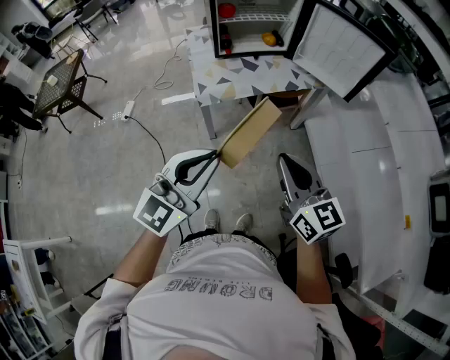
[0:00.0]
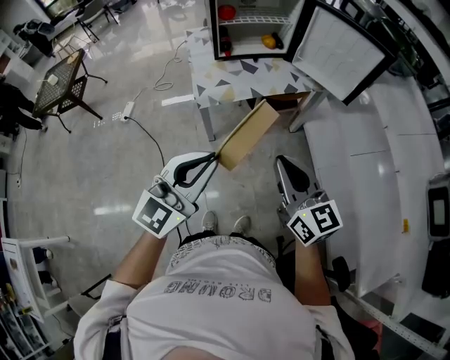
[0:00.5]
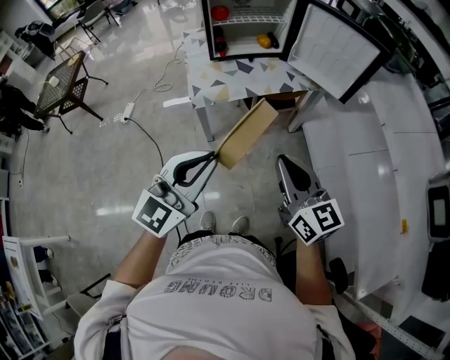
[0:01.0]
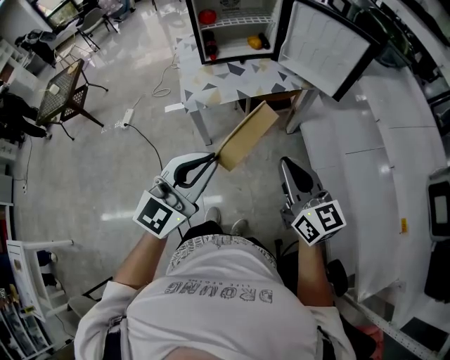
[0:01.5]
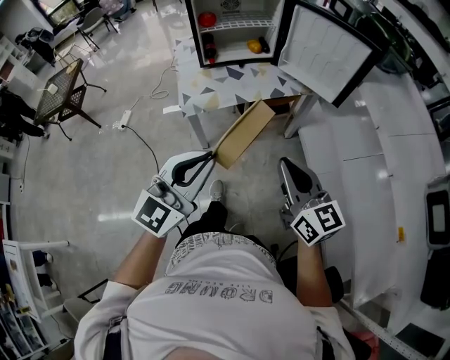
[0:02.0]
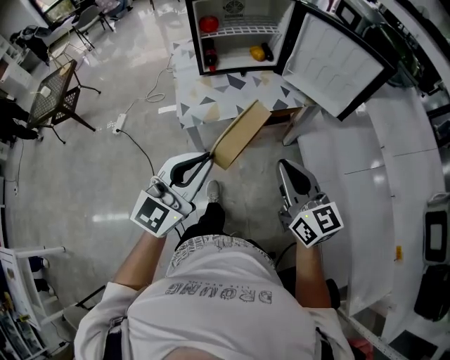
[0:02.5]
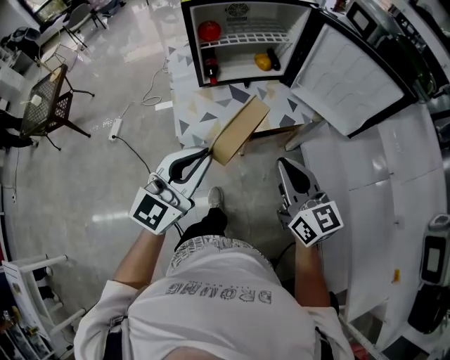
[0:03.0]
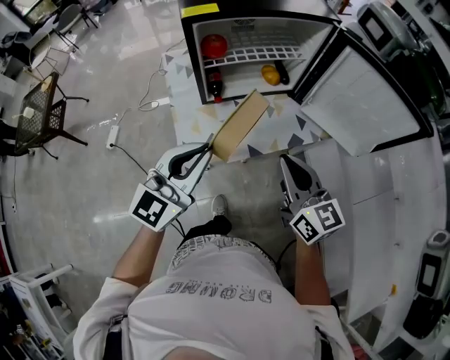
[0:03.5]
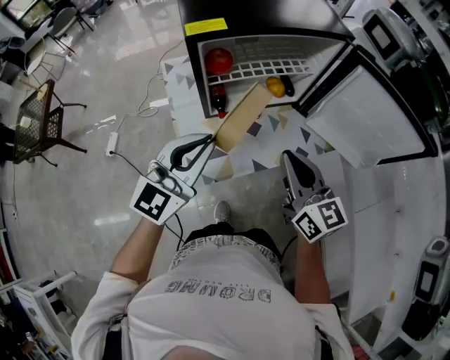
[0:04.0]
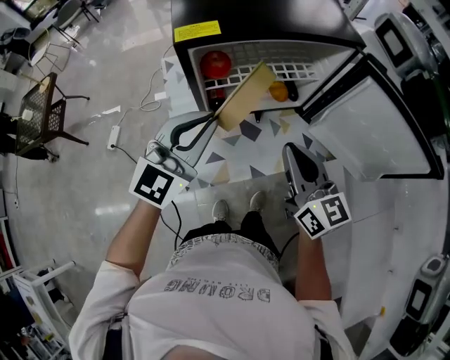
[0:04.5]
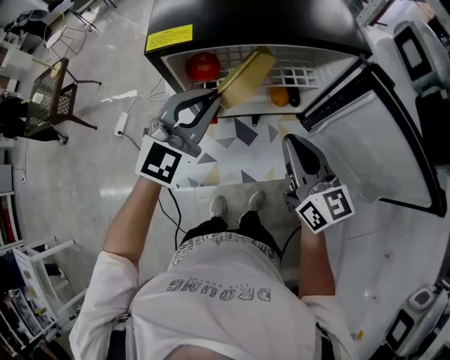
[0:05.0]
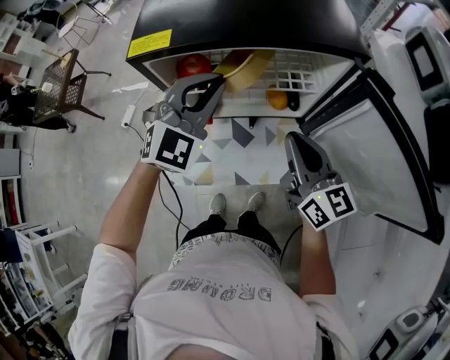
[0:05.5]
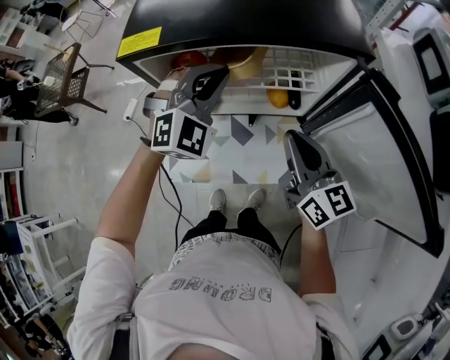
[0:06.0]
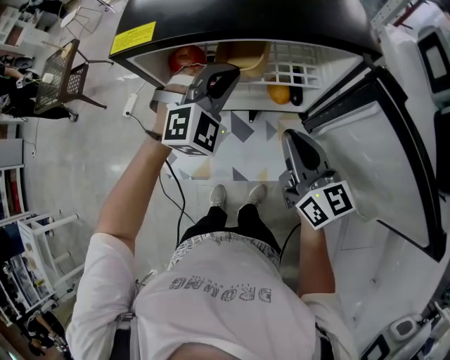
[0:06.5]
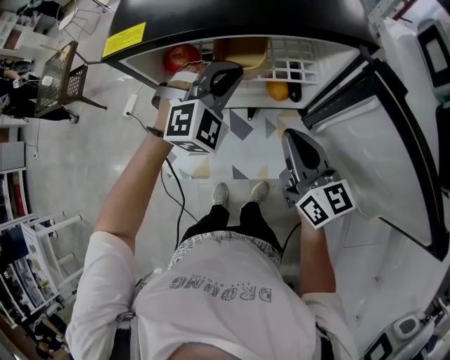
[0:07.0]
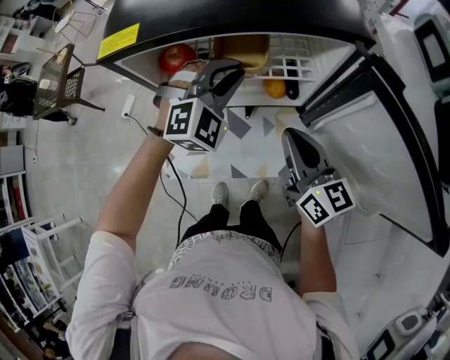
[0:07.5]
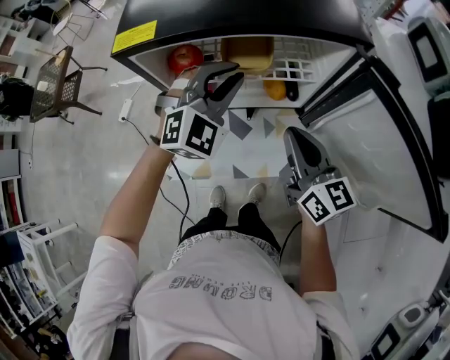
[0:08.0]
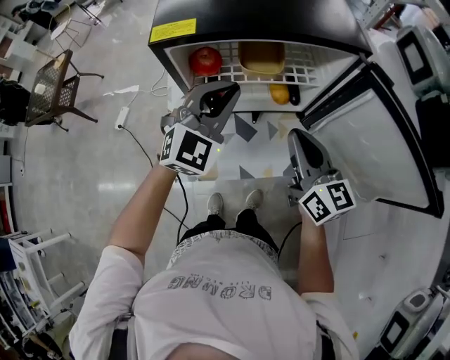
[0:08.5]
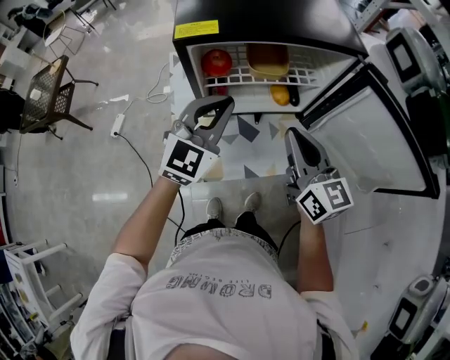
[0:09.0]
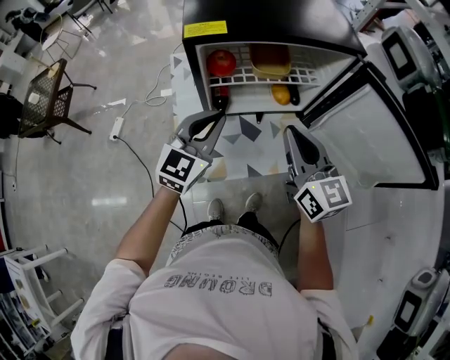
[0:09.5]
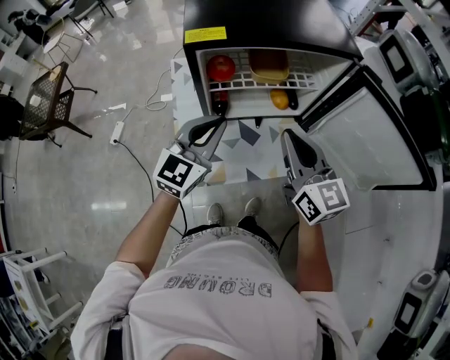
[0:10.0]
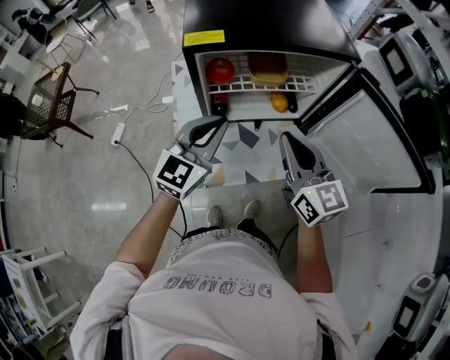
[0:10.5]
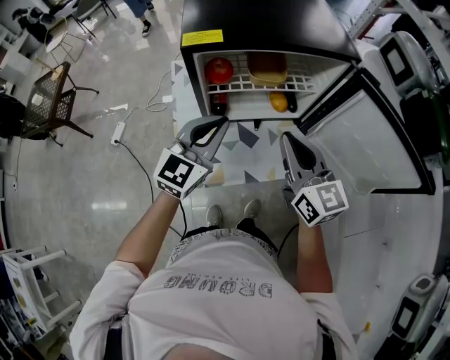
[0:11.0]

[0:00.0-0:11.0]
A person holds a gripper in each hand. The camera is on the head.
0:00.0 to 0:02.0: Both grippers move to the right, about 10 cm.
0:02.0 to 0:03.5: Both grippers move forward, roughly 30 cm.
0:03.5 to 0:05.5: The two grippers go some 25 cm forward. The left gripper changes its angle by approximately 40 degrees.
0:05.5 to 0:07.5: The left gripper goes approximately 10 cm downward and to the right, and swivels approximately 20 degrees.
0:07.5 to 0:09.0: The left gripper travels backward, to the left and upward by roughly 15 cm, and turns by about 40 degrees; the right gripper travels upward, to the left and backward by approximately 10 cm.
0:09.0 to 0:11.0: The grippers stay close to where they were, moving slightly.

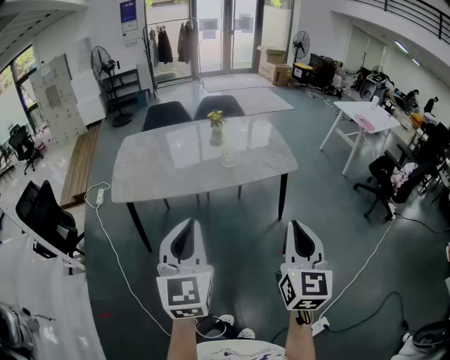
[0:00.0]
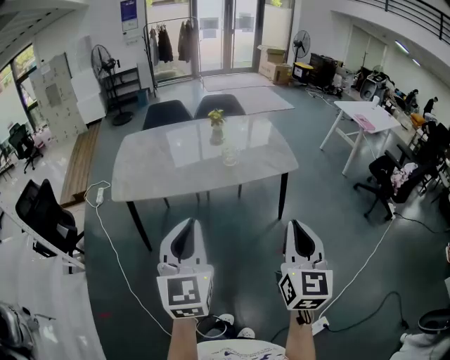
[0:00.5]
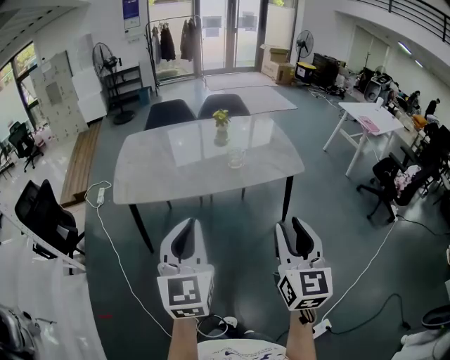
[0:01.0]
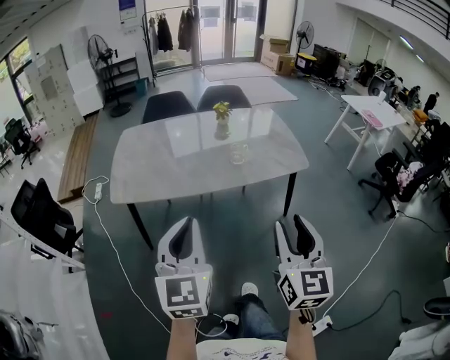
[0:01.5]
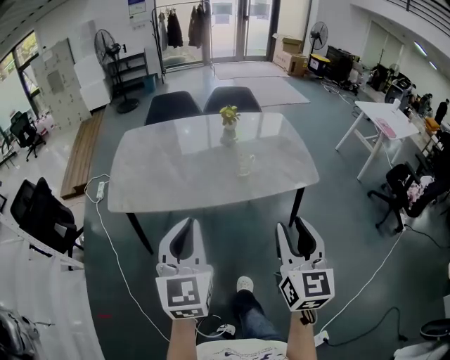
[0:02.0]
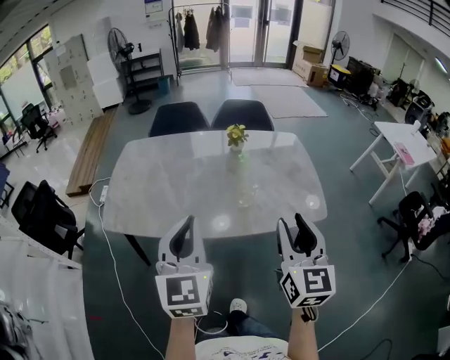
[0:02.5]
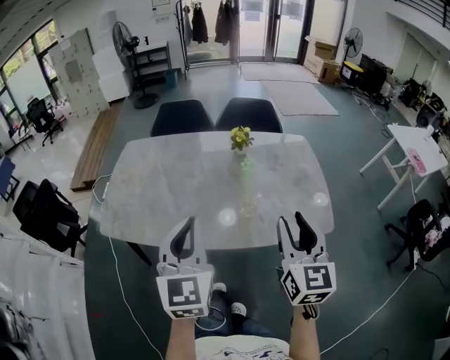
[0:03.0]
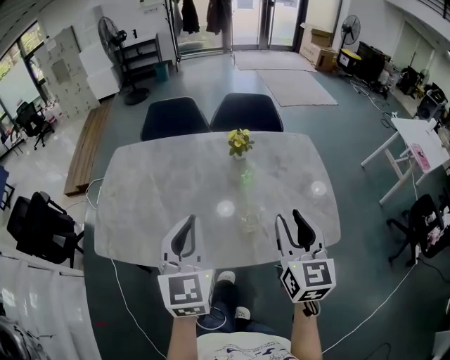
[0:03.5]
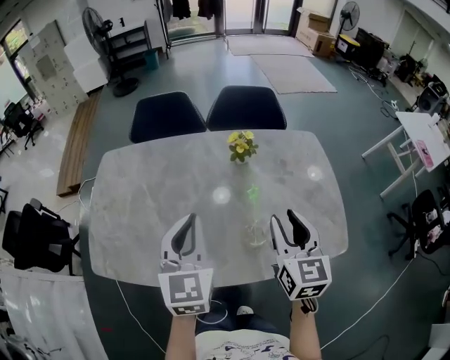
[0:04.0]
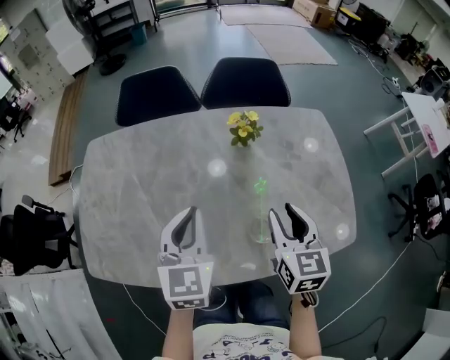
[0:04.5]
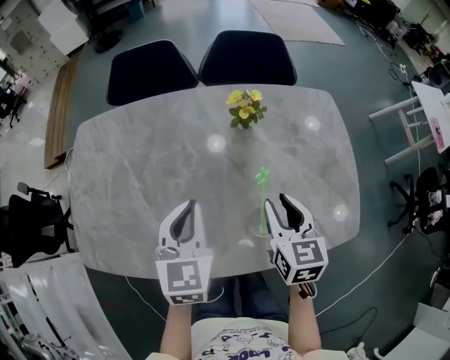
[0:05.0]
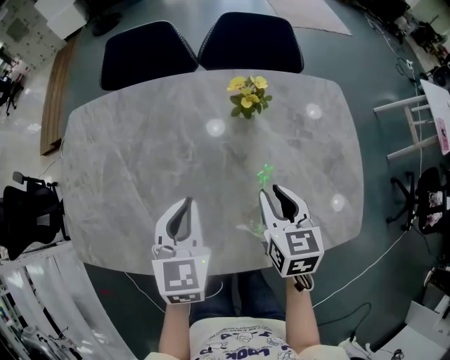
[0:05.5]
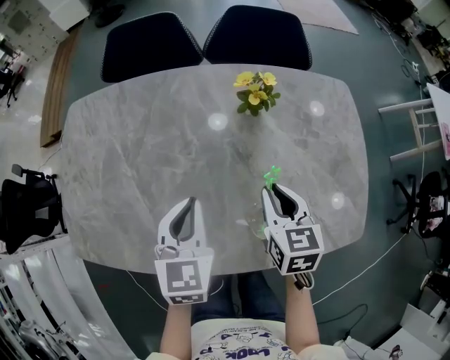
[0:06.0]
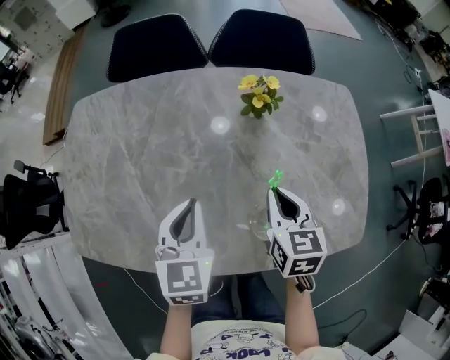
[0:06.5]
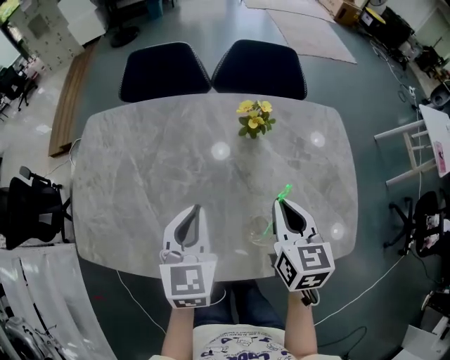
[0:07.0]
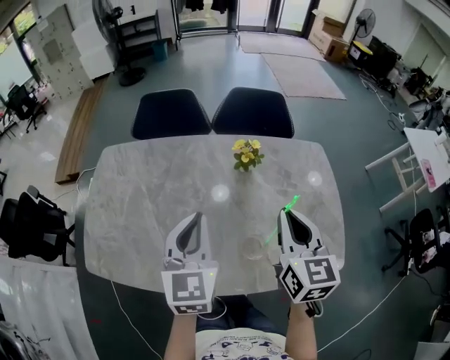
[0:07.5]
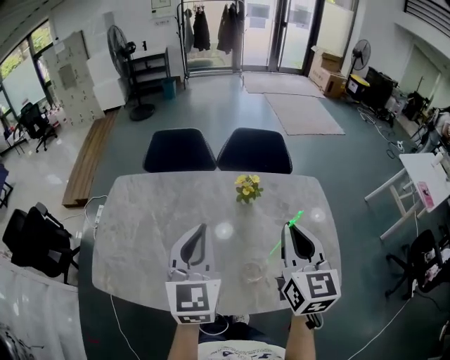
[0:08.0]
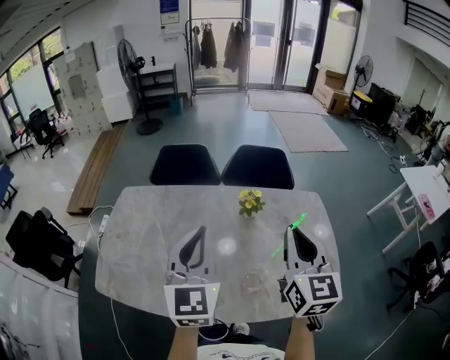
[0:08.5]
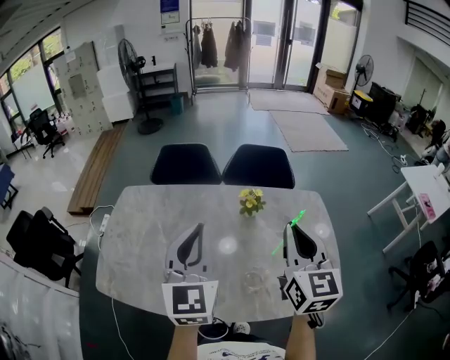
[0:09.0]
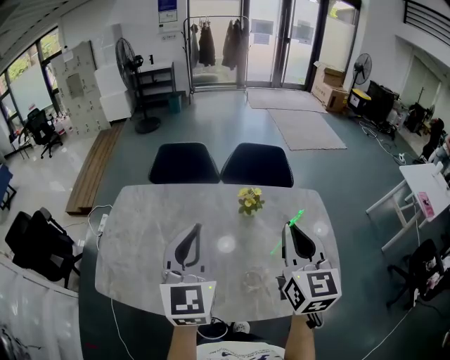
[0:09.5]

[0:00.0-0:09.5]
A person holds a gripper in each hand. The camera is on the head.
0:00.0 to 0:02.0: The grippers both shift forward by some 15 cm. The right gripper opens.
0:02.0 to 0:04.0: The pair of grippers is taken forward, roughly 40 cm.
0:04.0 to 0:05.5: Both grippers move downward and forward, about 15 cm. The right gripper turns by some 20 degrees.
0:05.5 to 0:07.5: The two grippers go roughly 15 cm upward. The right gripper swivels some 20 degrees, and closes.
0:07.5 to 0:09.5: The two grippers go roughly 10 cm upward.

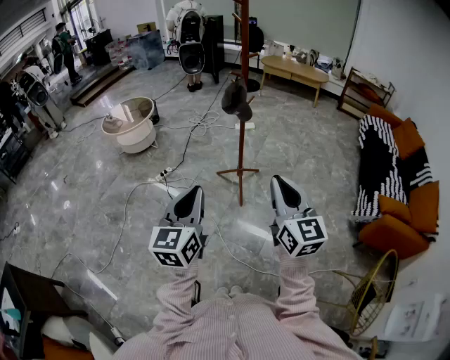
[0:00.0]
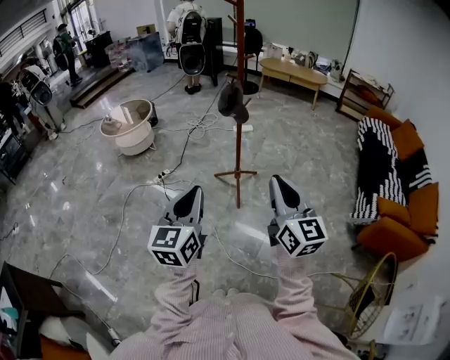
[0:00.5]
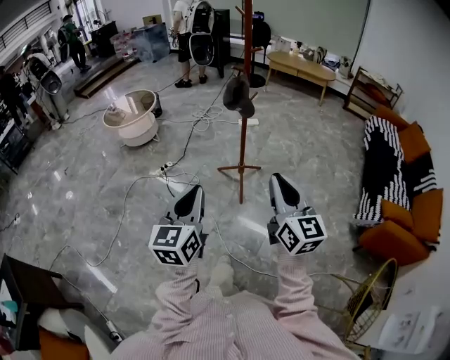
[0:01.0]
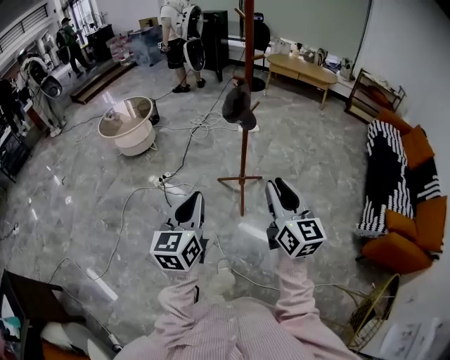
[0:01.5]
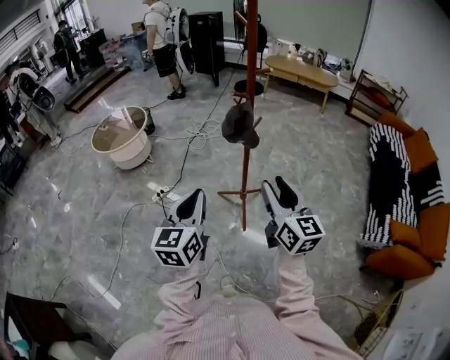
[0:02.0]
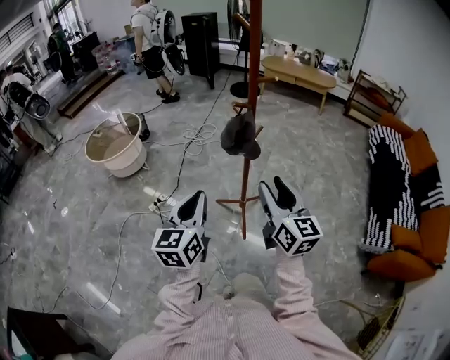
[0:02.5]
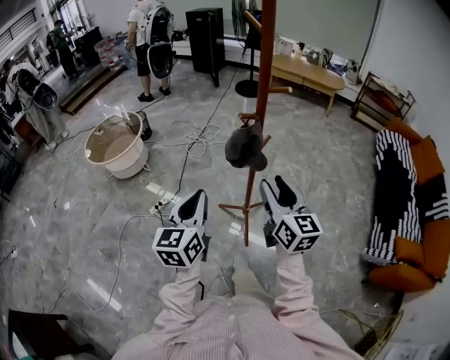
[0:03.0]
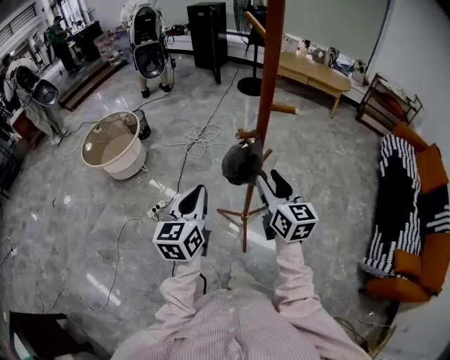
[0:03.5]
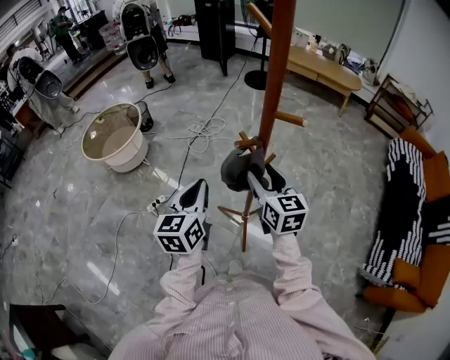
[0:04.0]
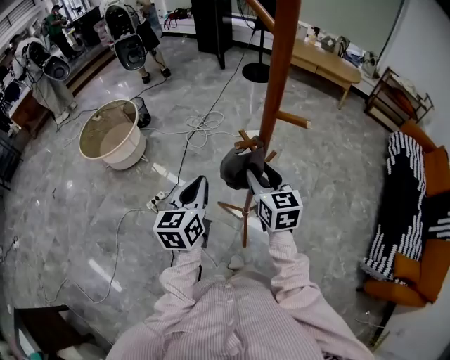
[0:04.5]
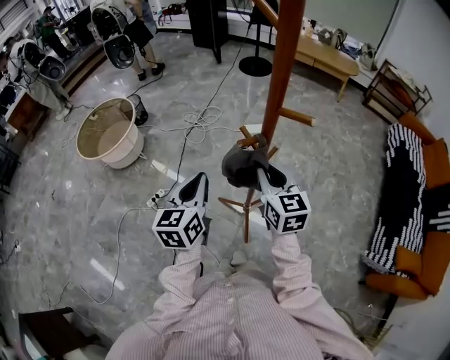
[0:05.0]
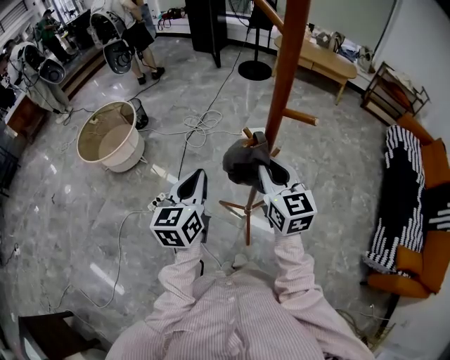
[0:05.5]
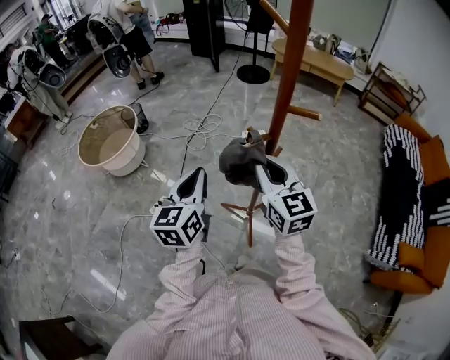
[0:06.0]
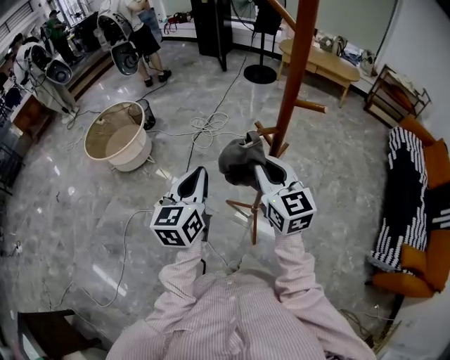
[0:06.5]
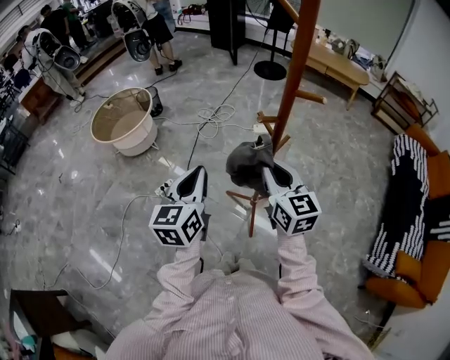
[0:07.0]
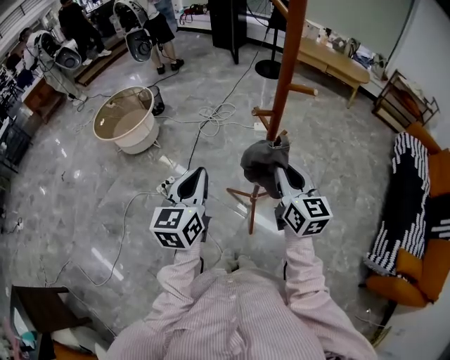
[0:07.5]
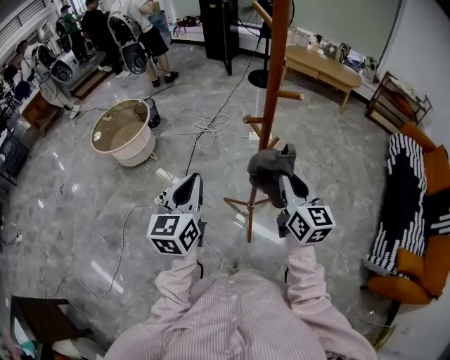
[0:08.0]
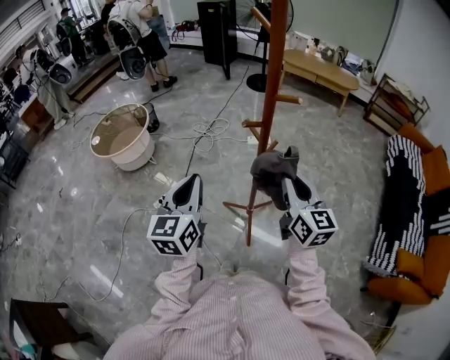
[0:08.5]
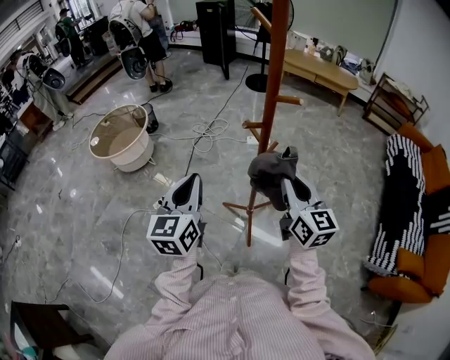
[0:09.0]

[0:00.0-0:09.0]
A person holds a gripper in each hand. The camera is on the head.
0:00.0 to 0:02.0: Both grippers move forward, some 25 cm. The right gripper opens up.
0:02.0 to 0:04.5: The two grippers go some 35 cm forward. The right gripper changes its angle by roughly 20 degrees.
0:04.5 to 0:07.0: The grippers both shift backward by about 10 cm. The right gripper closes its fingers.
0:07.0 to 0:09.0: The right gripper shifts approximately 5 cm to the right.
